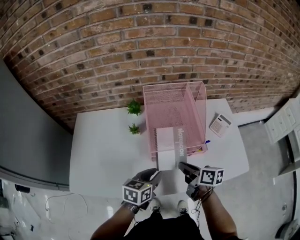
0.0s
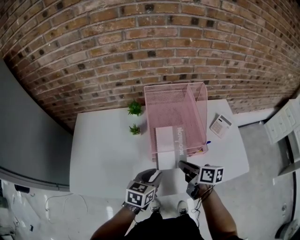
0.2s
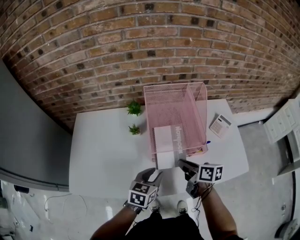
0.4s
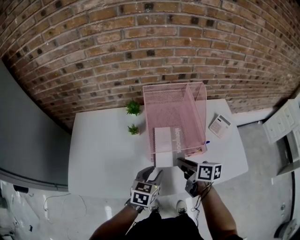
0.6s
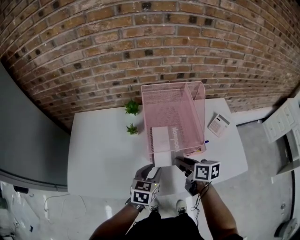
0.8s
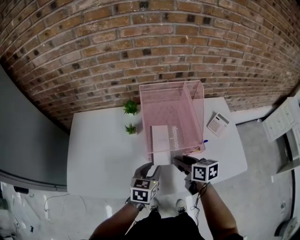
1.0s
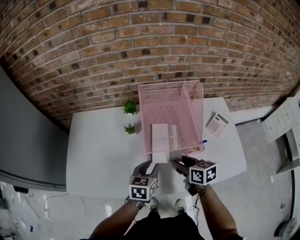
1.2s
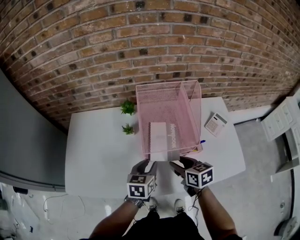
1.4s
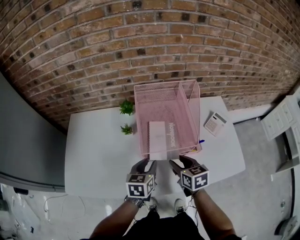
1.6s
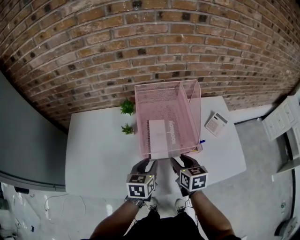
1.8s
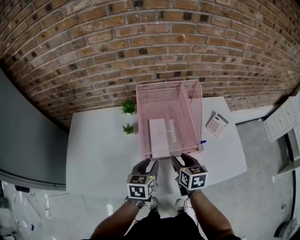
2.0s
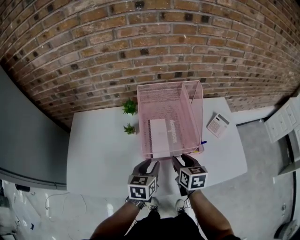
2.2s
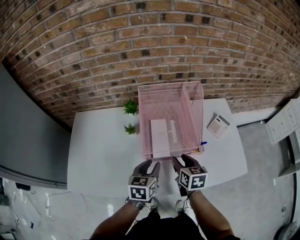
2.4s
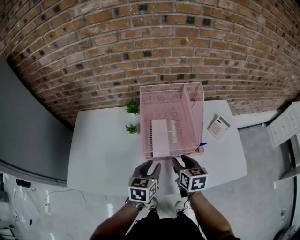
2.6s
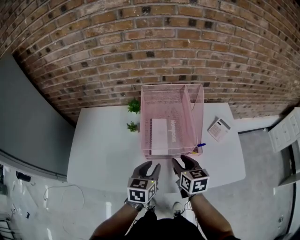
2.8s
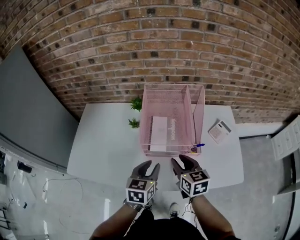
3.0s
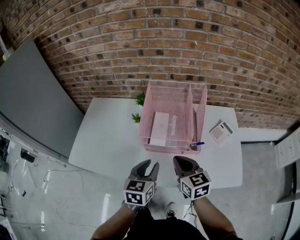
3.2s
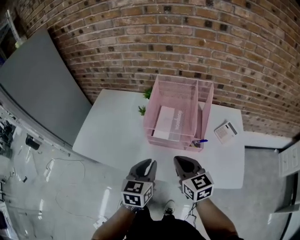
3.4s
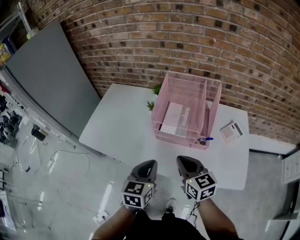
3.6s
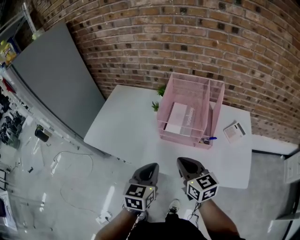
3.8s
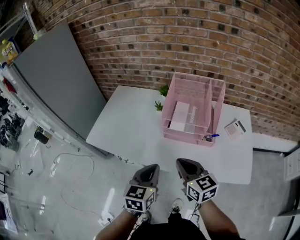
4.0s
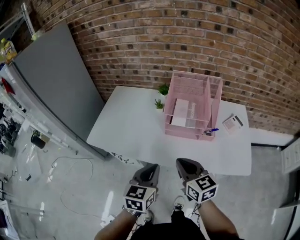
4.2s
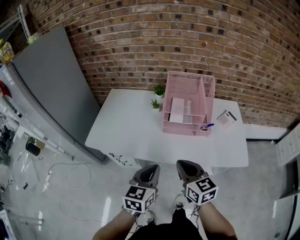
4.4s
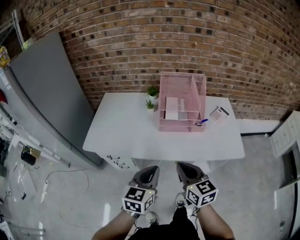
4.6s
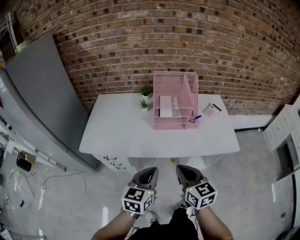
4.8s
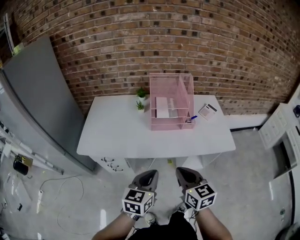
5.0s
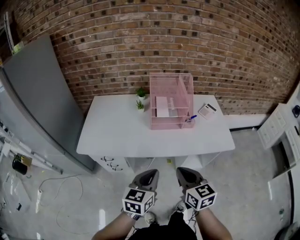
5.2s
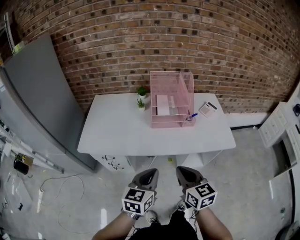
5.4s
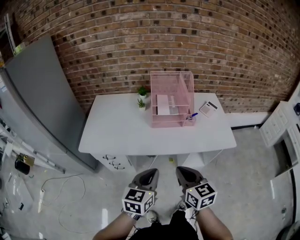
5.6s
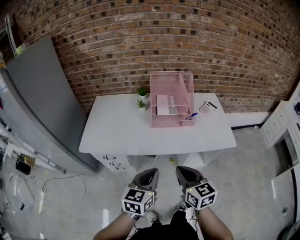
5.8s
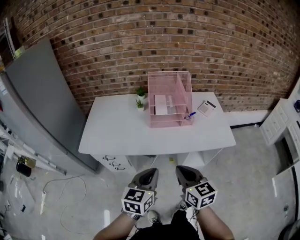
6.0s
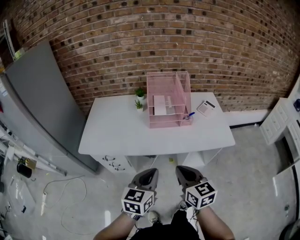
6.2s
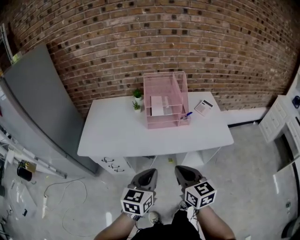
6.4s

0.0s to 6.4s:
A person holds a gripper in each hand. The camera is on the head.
0.0s to 1.6s: The left gripper travels forward by approximately 5 cm, while the right gripper changes its angle by some 40 degrees, and opens.
1.6s to 3.2s: The left gripper goes roughly 10 cm backward and upward, while the right gripper moves upward, some 10 cm, changes its angle by approximately 20 degrees, and closes.
3.2s to 4.8s: The grippers both shift backward and to the left by about 25 cm. The left gripper closes its fingers.
4.8s to 6.4s: There are only small adjustments of the grippers.

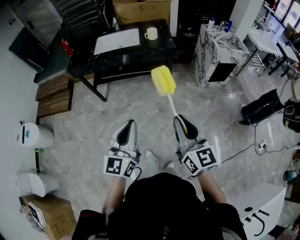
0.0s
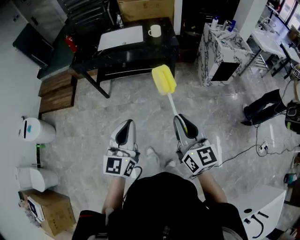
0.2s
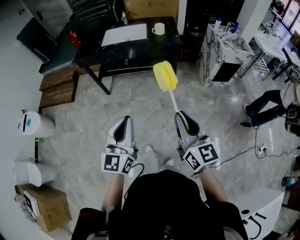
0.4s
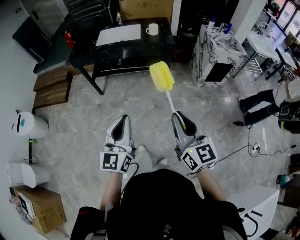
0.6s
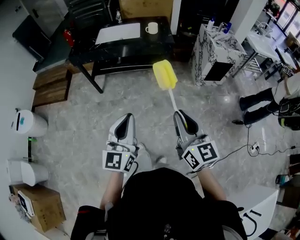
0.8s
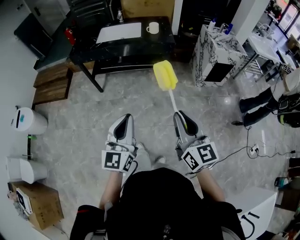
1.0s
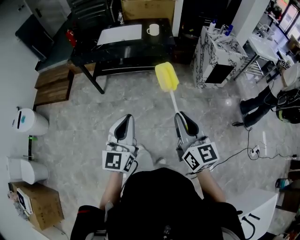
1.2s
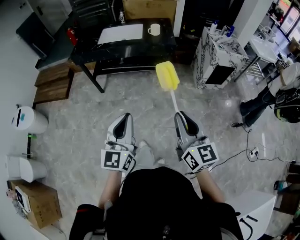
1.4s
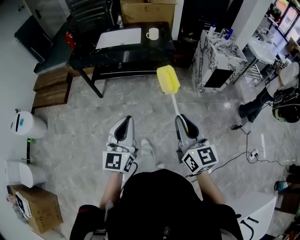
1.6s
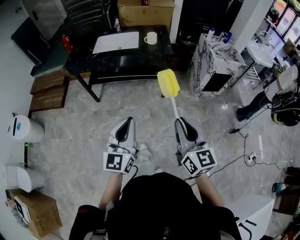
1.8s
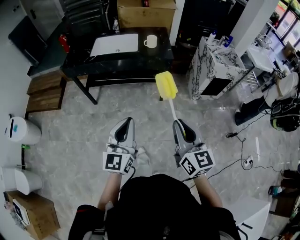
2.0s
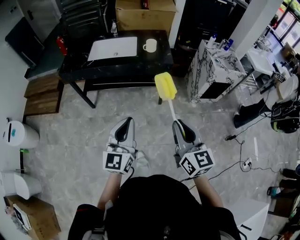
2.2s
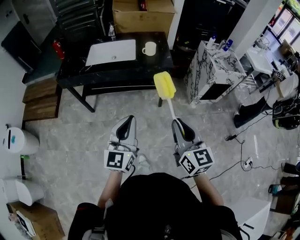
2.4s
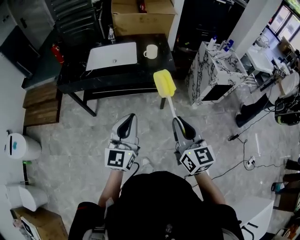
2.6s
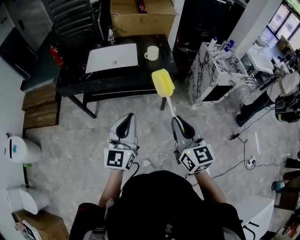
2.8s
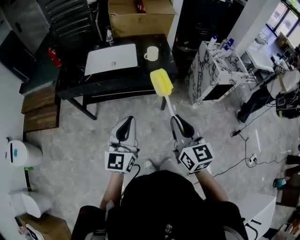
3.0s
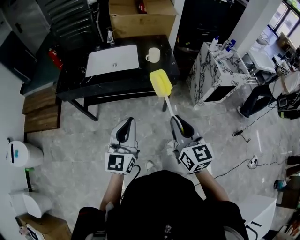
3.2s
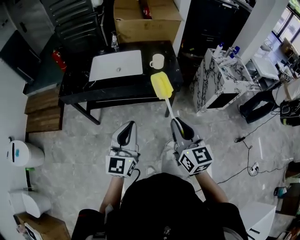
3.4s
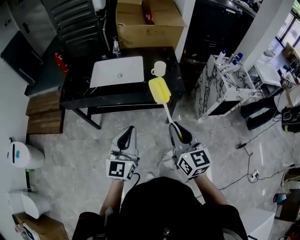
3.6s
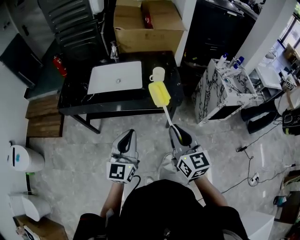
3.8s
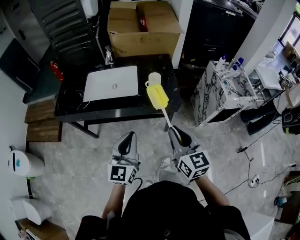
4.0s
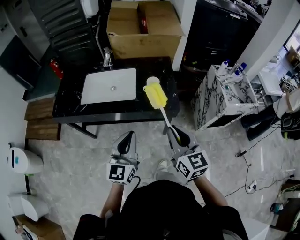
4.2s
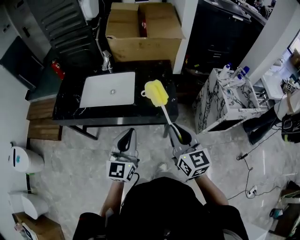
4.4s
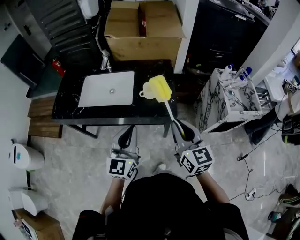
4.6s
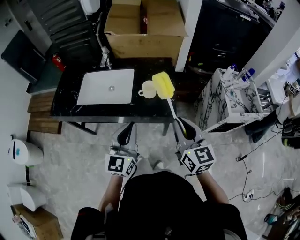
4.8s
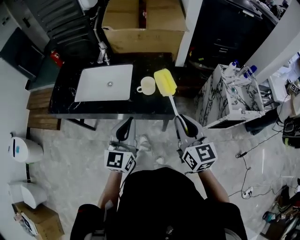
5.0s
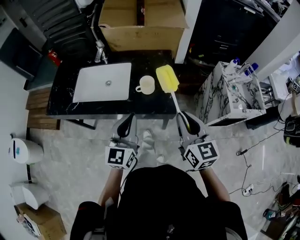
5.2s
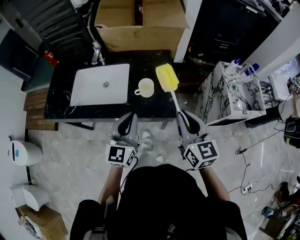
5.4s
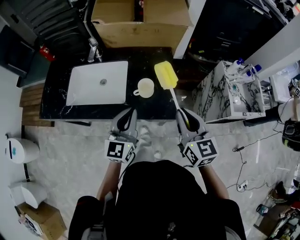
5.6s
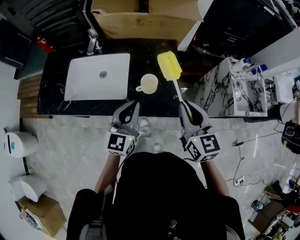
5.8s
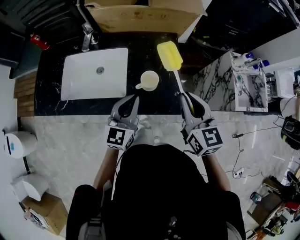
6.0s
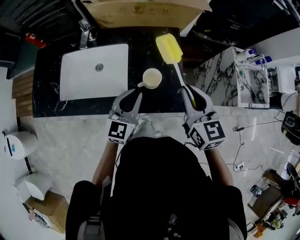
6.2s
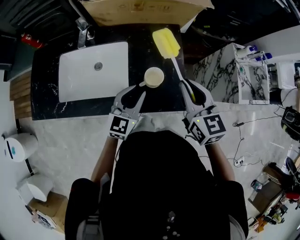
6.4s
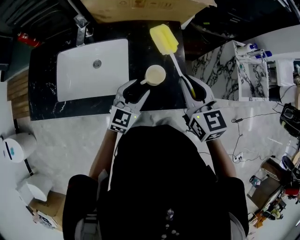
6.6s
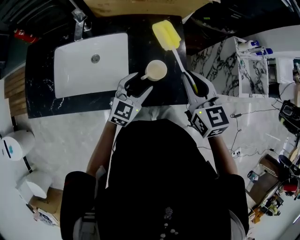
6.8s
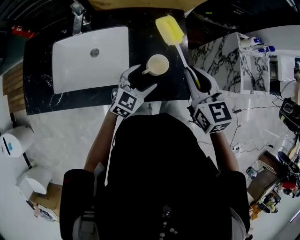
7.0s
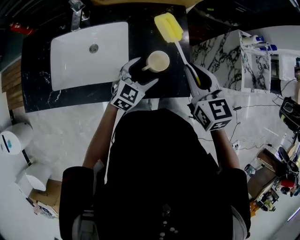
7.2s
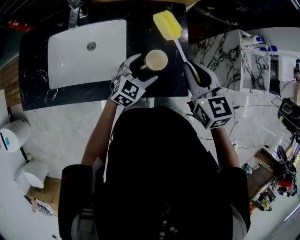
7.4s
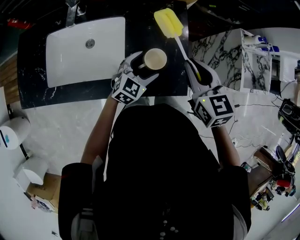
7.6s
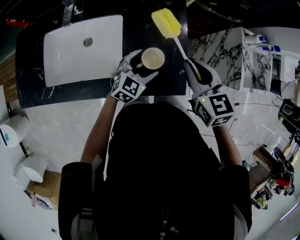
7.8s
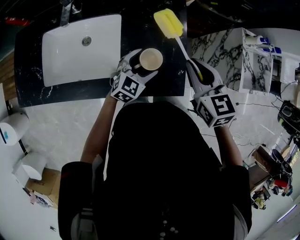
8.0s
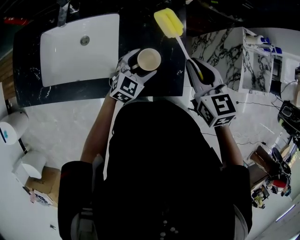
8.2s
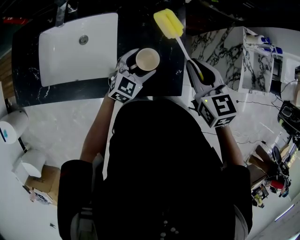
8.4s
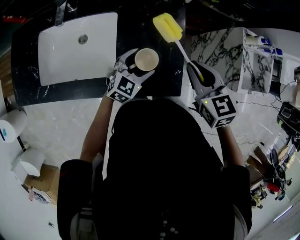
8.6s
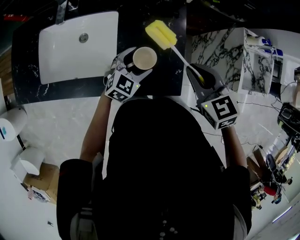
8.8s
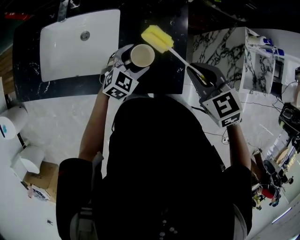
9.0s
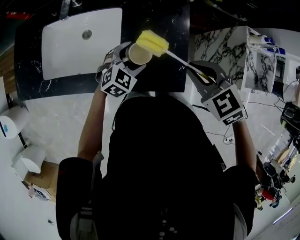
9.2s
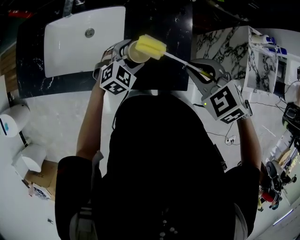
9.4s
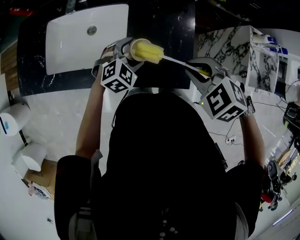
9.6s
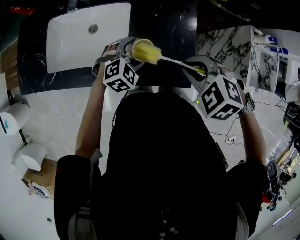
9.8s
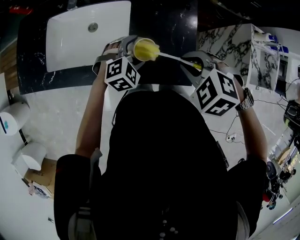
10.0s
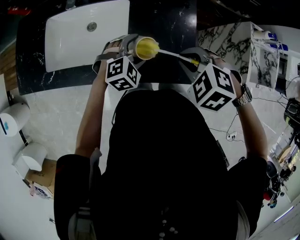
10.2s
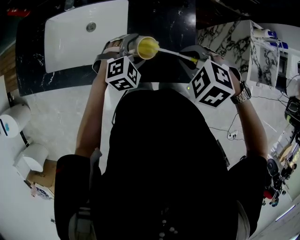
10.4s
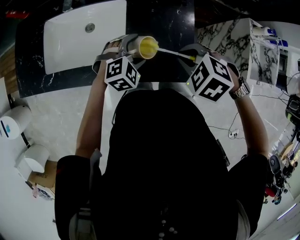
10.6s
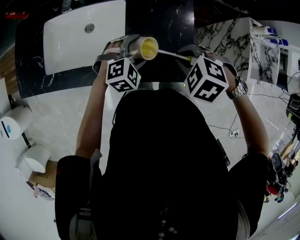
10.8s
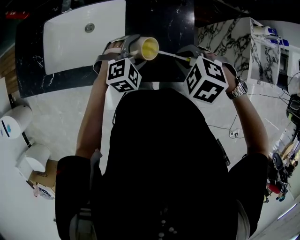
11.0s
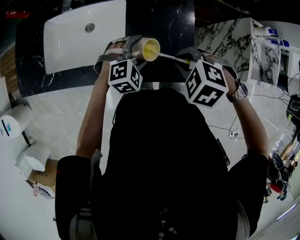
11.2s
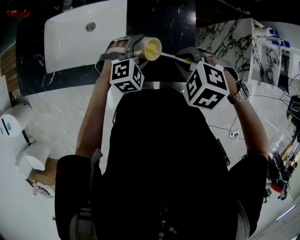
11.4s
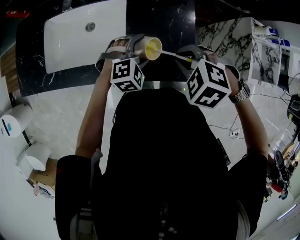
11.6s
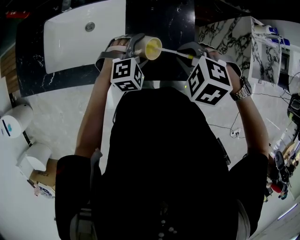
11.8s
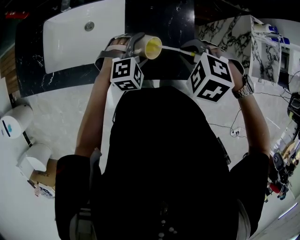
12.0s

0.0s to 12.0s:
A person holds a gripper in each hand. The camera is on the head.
1.6s to 3.0s: The grippers both shift forward by about 25 cm.
3.0s to 4.4s: The grippers both shift forward by roughly 25 cm.
4.4s to 6.0s: The right gripper is displaced forward by approximately 25 cm. The left gripper moves forward and downward, some 25 cm.
6.0s to 7.6s: The right gripper shifts some 10 cm forward and downward; the left gripper goes roughly 15 cm downward and forward, turns by roughly 30 degrees, and opens up.
7.6s to 9.0s: The right gripper swivels roughly 30 degrees.
9.0s to 10.4s: The left gripper rotates about 30 degrees. The right gripper travels to the left by about 5 cm, and swivels roughly 40 degrees.
10.4s to 12.0s: There are only small adjustments of the grippers.

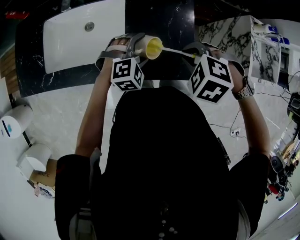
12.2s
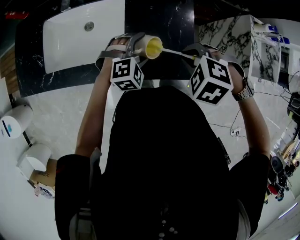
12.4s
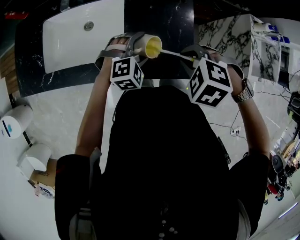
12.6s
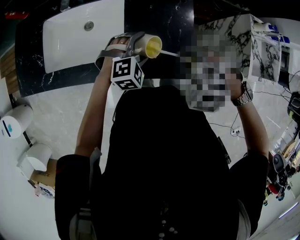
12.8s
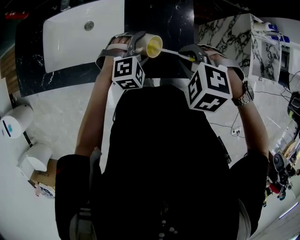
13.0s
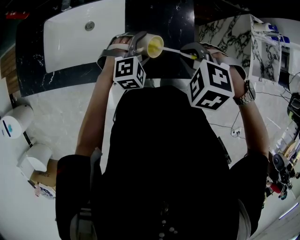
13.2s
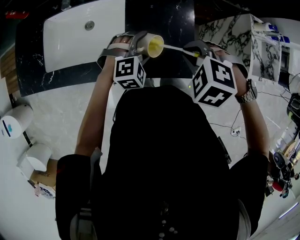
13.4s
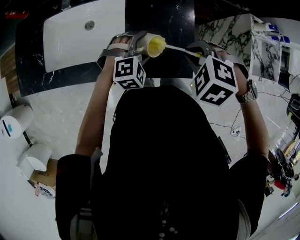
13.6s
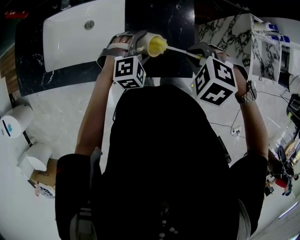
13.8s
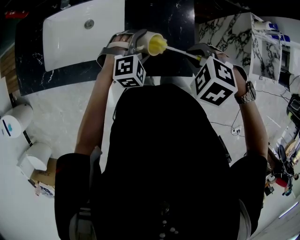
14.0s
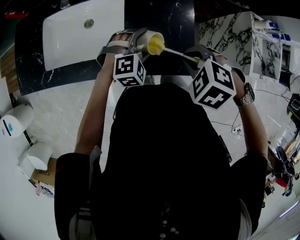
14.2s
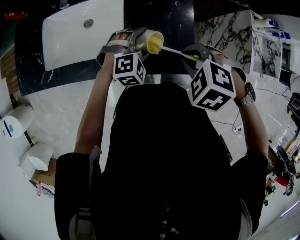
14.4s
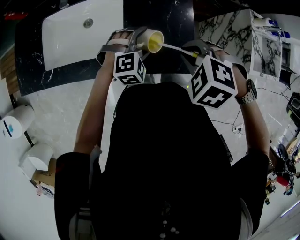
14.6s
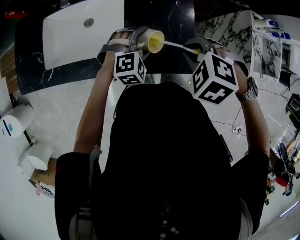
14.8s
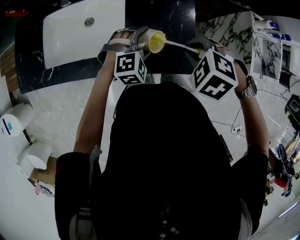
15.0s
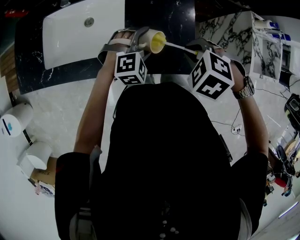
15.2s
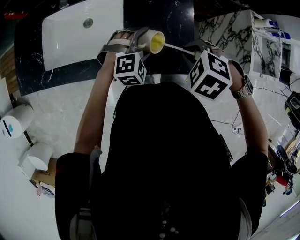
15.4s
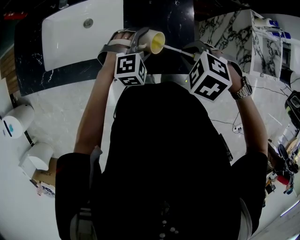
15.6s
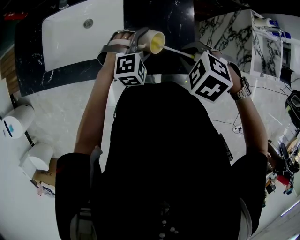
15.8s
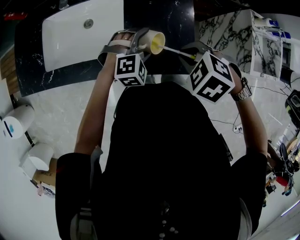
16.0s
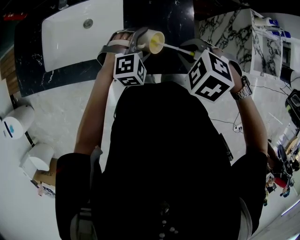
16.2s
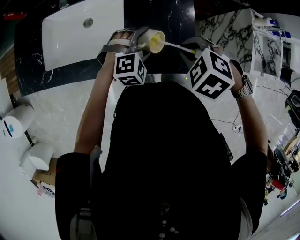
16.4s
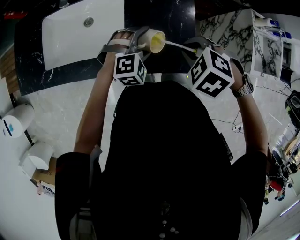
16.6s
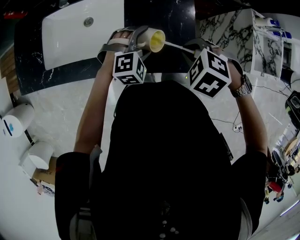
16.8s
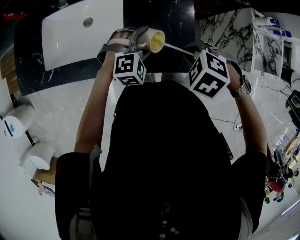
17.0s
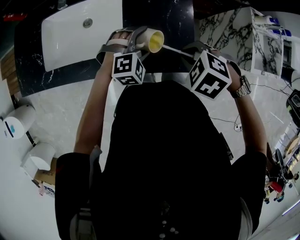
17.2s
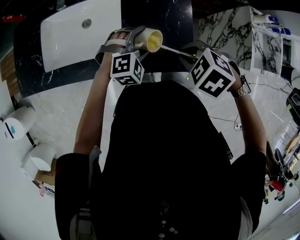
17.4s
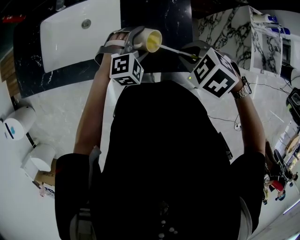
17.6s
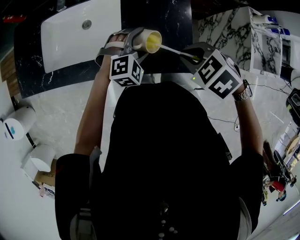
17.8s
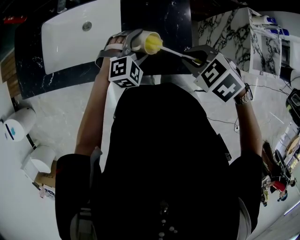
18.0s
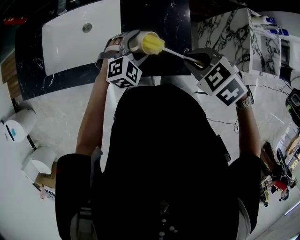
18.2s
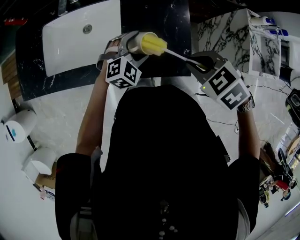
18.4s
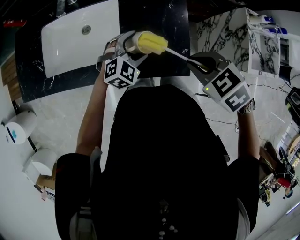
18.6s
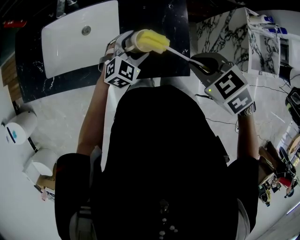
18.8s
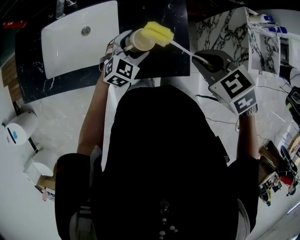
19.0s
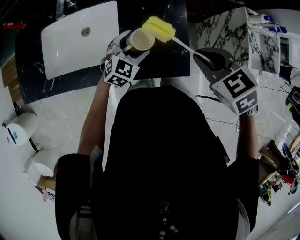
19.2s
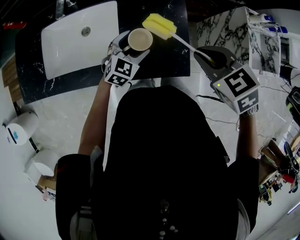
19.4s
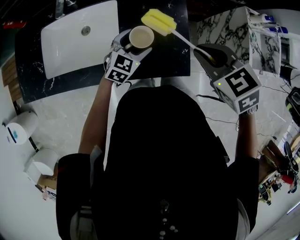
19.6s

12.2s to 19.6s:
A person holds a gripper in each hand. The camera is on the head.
12.2s to 16.6s: The grippers move only a little.
16.6s to 18.2s: The grippers make only small movements.
18.2s to 19.6s: The right gripper moves upward, about 5 cm, and changes its angle by approximately 20 degrees. The left gripper rotates roughly 30 degrees.
